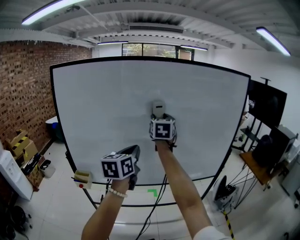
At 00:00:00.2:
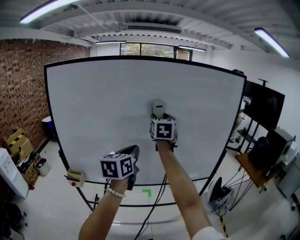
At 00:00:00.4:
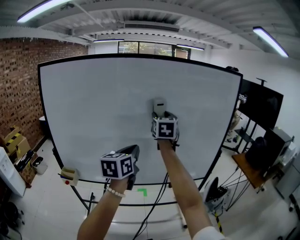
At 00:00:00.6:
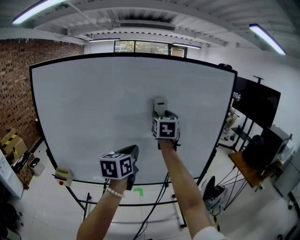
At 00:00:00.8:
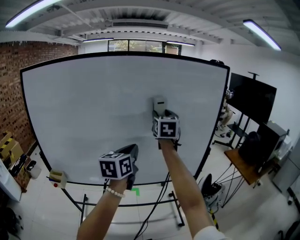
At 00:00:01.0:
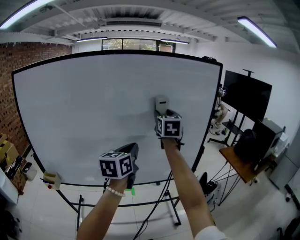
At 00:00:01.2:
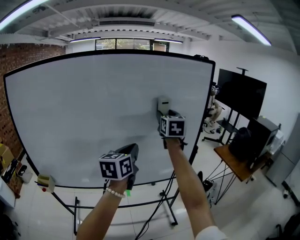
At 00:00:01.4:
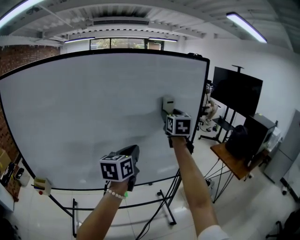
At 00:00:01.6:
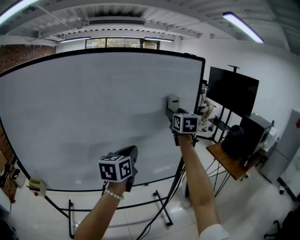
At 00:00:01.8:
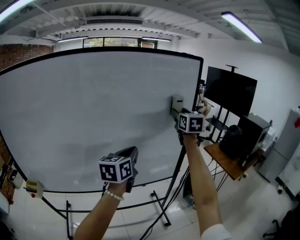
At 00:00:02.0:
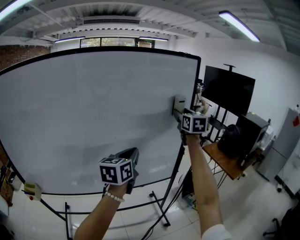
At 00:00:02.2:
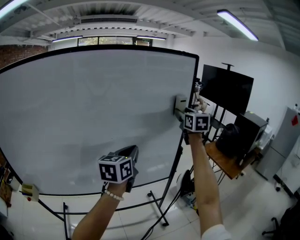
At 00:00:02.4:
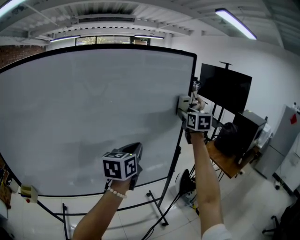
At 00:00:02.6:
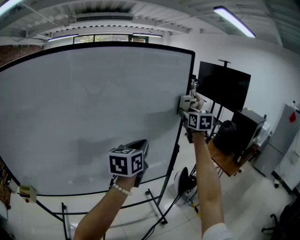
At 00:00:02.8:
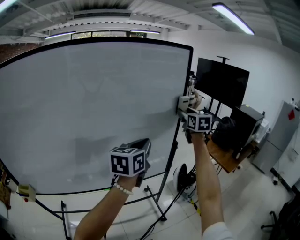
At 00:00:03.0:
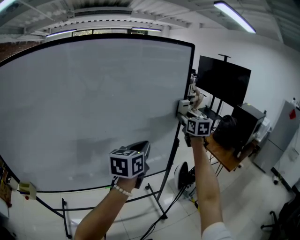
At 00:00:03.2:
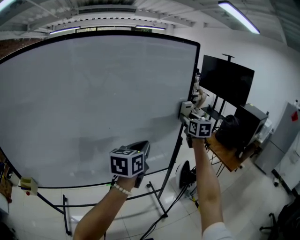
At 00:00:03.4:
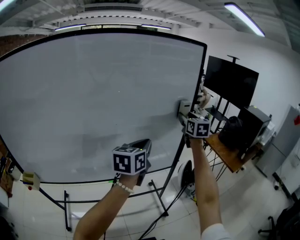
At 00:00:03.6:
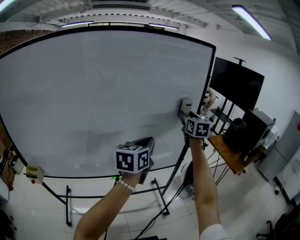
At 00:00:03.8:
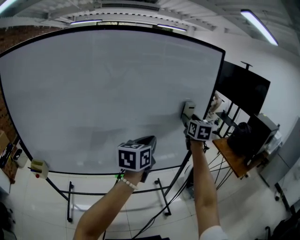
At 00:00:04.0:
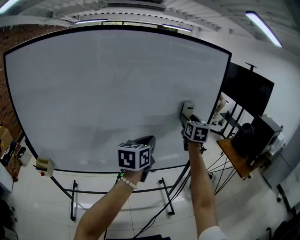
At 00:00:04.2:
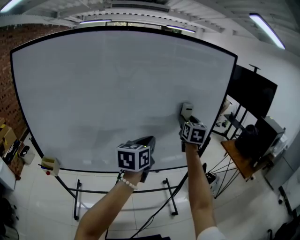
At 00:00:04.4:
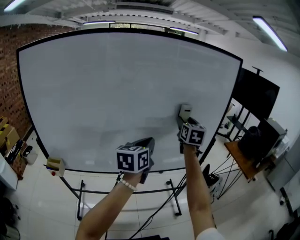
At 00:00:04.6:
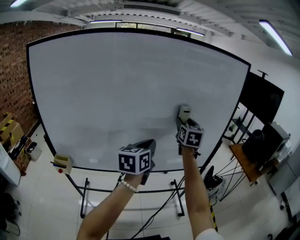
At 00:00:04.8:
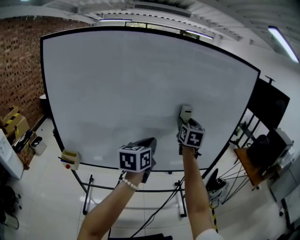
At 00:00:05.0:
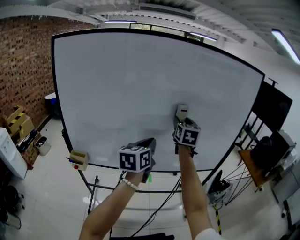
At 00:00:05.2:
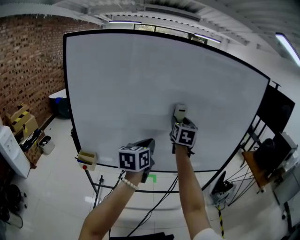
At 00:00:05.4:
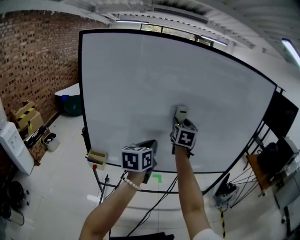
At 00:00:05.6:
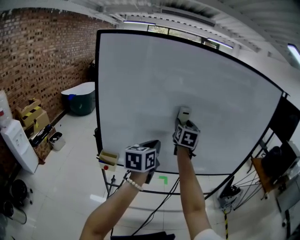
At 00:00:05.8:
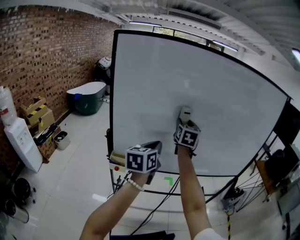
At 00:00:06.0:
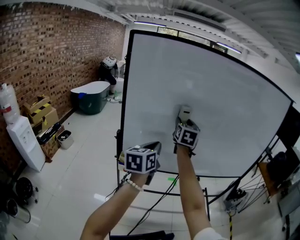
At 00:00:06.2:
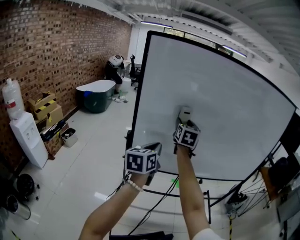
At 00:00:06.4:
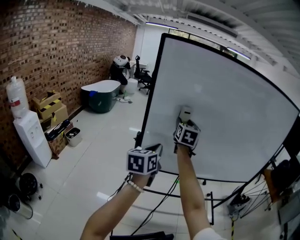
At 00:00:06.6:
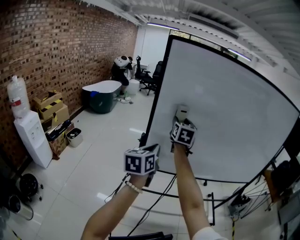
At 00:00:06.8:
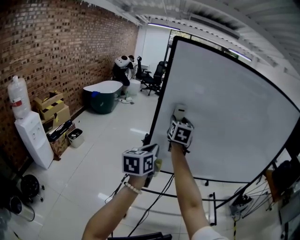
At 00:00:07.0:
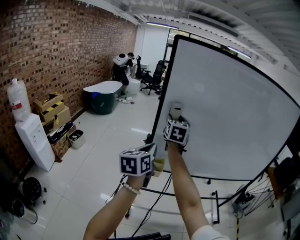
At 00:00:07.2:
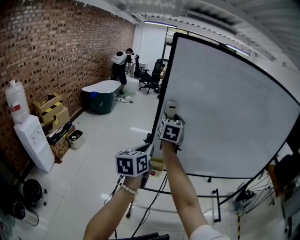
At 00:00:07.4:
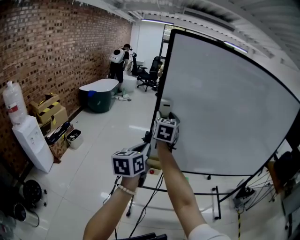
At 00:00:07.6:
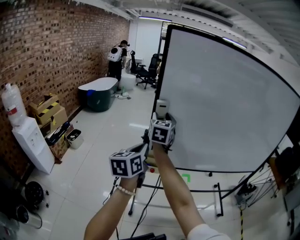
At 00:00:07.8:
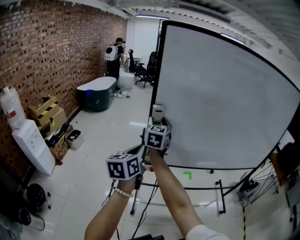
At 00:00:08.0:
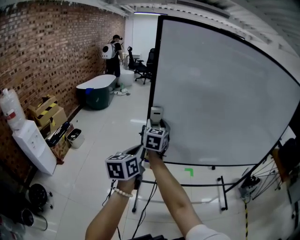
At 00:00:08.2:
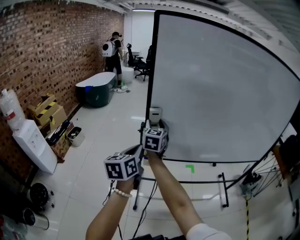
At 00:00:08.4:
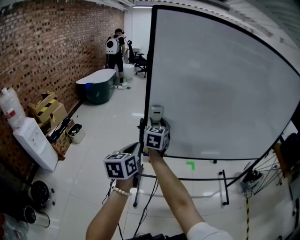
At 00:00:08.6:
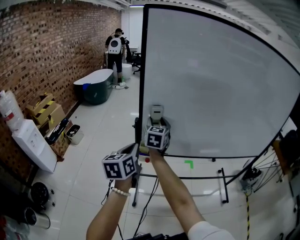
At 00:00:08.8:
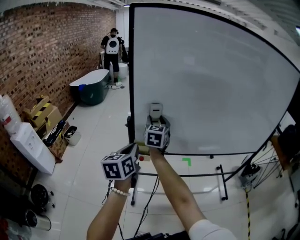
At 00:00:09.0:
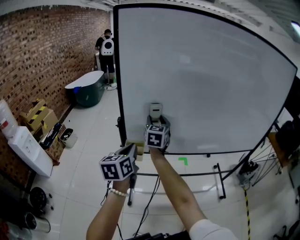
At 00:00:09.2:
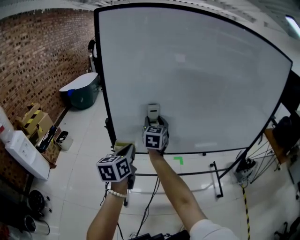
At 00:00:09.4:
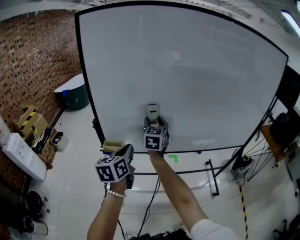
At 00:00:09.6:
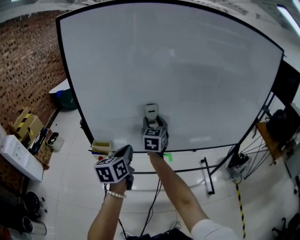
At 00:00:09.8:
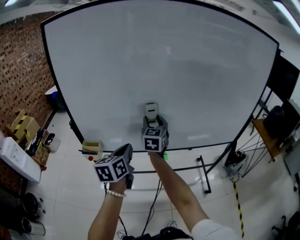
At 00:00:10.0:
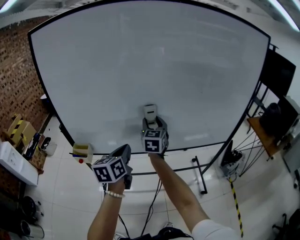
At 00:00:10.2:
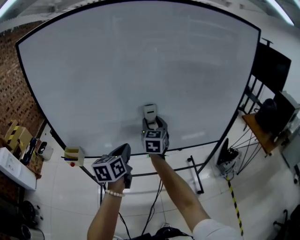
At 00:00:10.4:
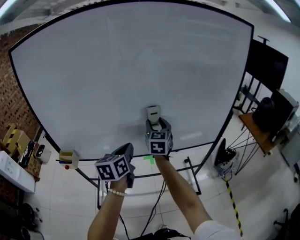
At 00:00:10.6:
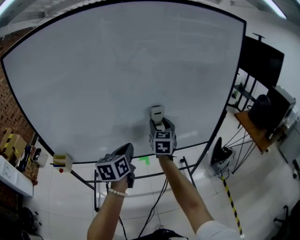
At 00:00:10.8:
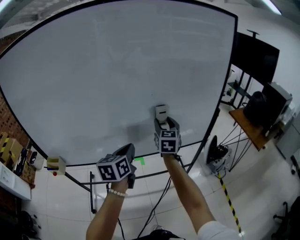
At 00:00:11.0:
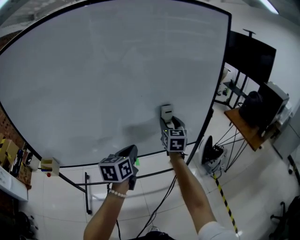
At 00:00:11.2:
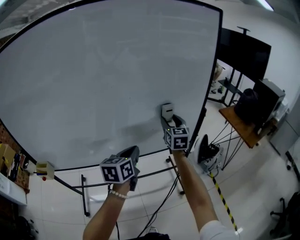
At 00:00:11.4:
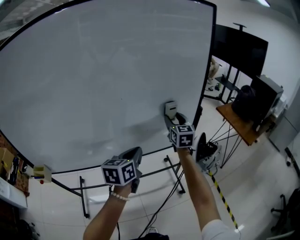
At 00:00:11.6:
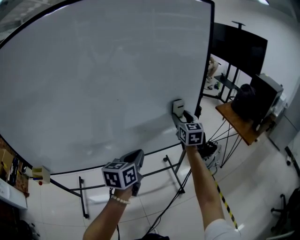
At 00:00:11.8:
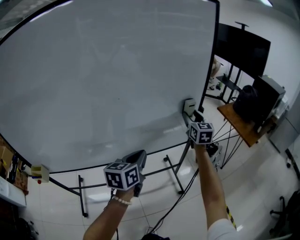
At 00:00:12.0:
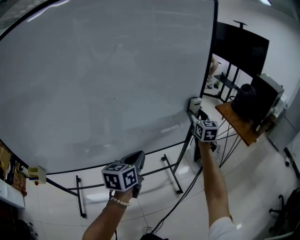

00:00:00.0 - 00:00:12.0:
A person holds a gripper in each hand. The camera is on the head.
00:00:00.0 - 00:00:01.6: The right gripper moves to the right, about 40 cm; the left gripper is displaced to the right and forward by about 35 cm.
00:00:01.6 - 00:00:03.0: The left gripper is displaced to the right and forward by about 10 cm. Meanwhile the right gripper goes about 15 cm to the right, downward and forward.
00:00:03.0 - 00:00:04.4: The two grippers go about 25 cm to the left and backward.
00:00:04.4 - 00:00:06.0: The pair of grippers is taken to the left, some 50 cm.
00:00:06.0 - 00:00:07.6: The grippers both shift to the left by some 25 cm.
00:00:07.6 - 00:00:09.0: The right gripper is displaced to the right and downward by some 20 cm. Meanwhile the left gripper moves to the right and downward, approximately 10 cm.
00:00:09.0 - 00:00:10.4: Both grippers are carried to the right, roughly 50 cm.
00:00:10.4 - 00:00:12.0: The right gripper heads to the right, covering about 40 cm. The left gripper moves to the right, some 25 cm, and turns by about 20 degrees.

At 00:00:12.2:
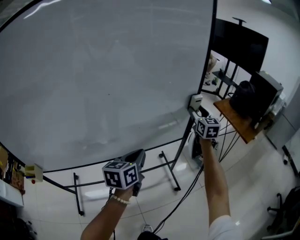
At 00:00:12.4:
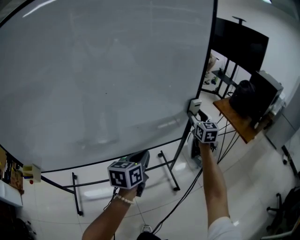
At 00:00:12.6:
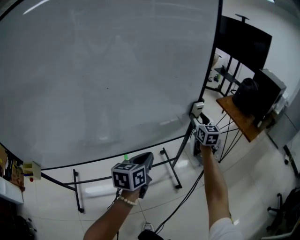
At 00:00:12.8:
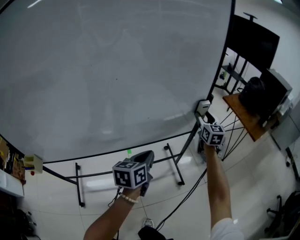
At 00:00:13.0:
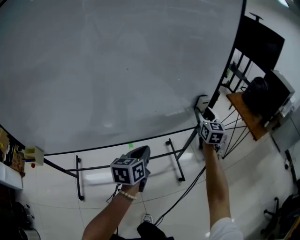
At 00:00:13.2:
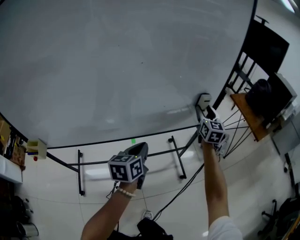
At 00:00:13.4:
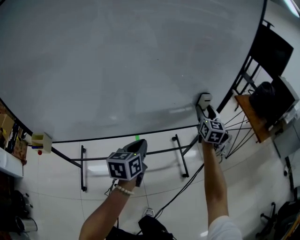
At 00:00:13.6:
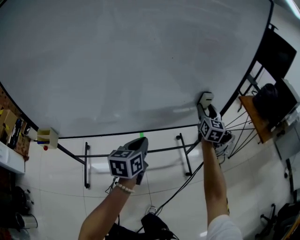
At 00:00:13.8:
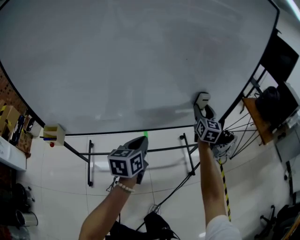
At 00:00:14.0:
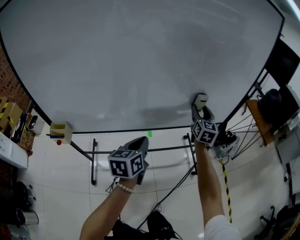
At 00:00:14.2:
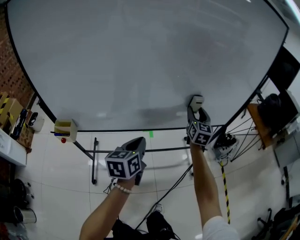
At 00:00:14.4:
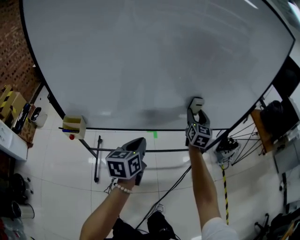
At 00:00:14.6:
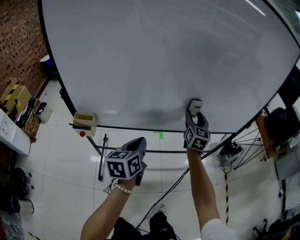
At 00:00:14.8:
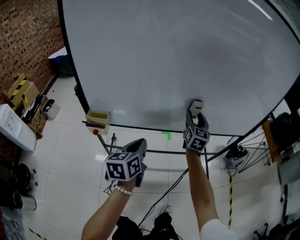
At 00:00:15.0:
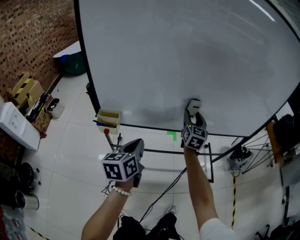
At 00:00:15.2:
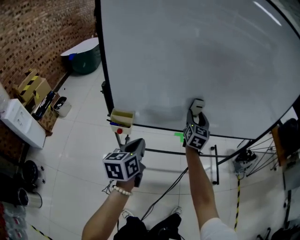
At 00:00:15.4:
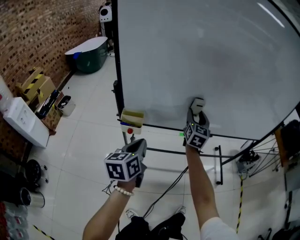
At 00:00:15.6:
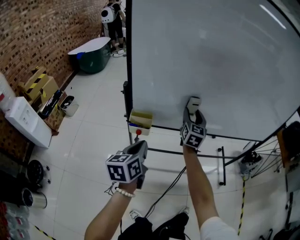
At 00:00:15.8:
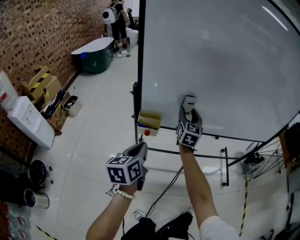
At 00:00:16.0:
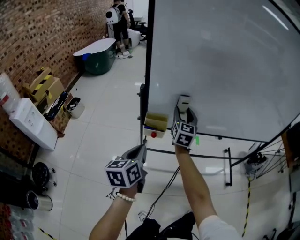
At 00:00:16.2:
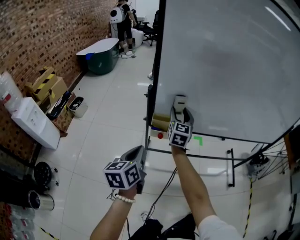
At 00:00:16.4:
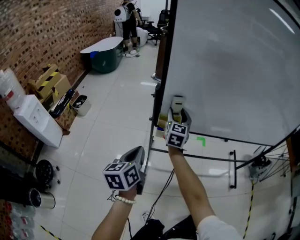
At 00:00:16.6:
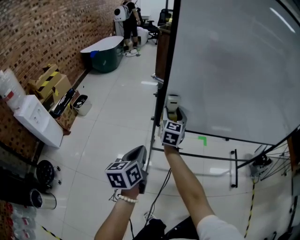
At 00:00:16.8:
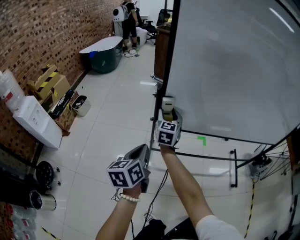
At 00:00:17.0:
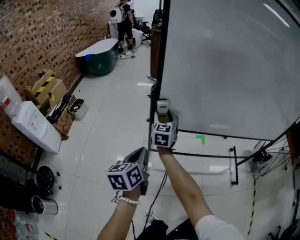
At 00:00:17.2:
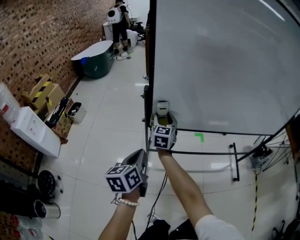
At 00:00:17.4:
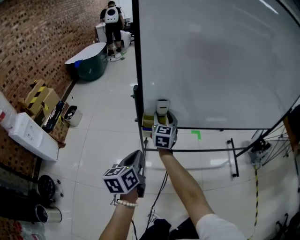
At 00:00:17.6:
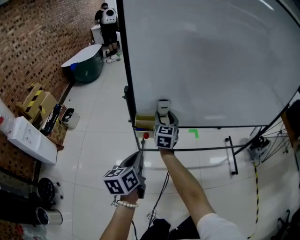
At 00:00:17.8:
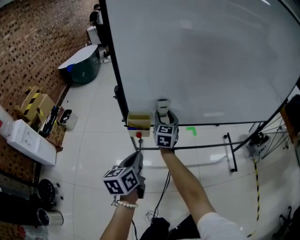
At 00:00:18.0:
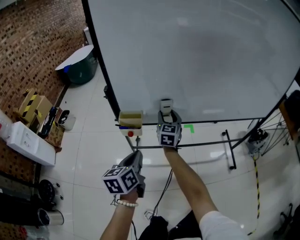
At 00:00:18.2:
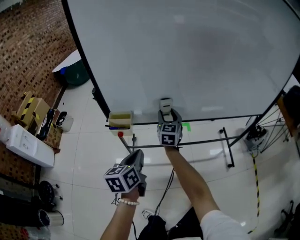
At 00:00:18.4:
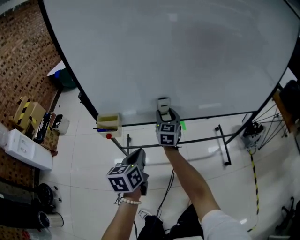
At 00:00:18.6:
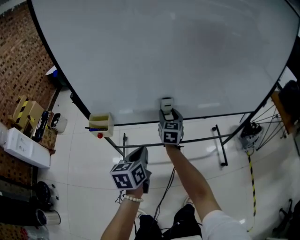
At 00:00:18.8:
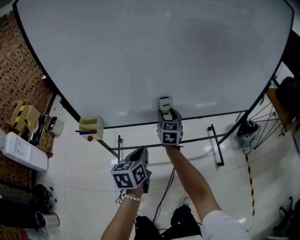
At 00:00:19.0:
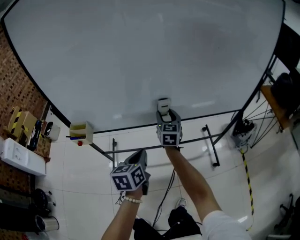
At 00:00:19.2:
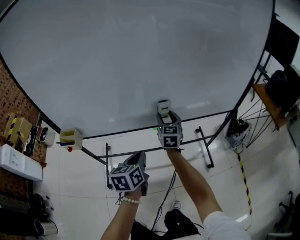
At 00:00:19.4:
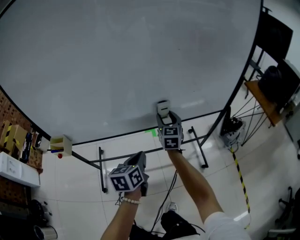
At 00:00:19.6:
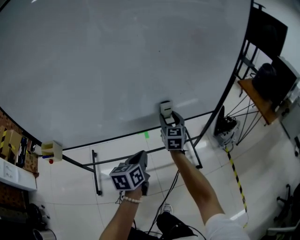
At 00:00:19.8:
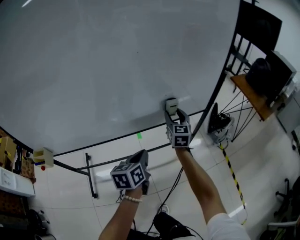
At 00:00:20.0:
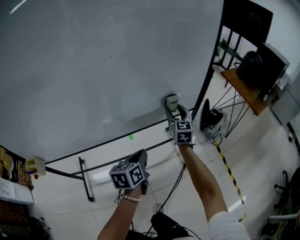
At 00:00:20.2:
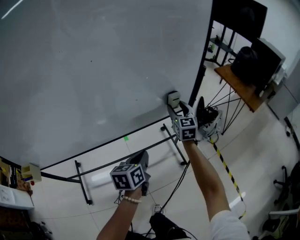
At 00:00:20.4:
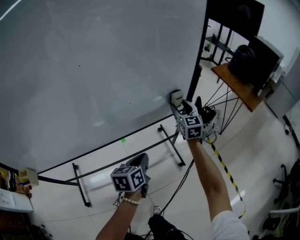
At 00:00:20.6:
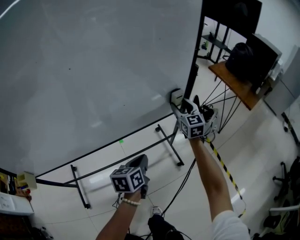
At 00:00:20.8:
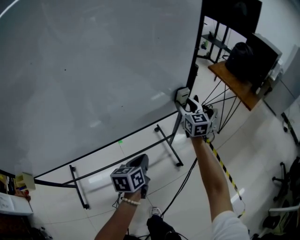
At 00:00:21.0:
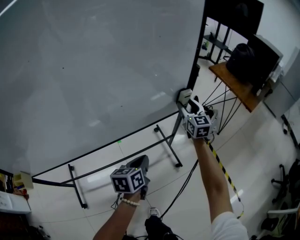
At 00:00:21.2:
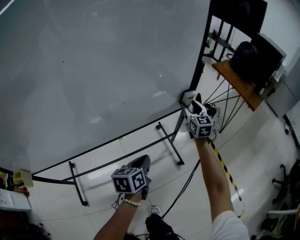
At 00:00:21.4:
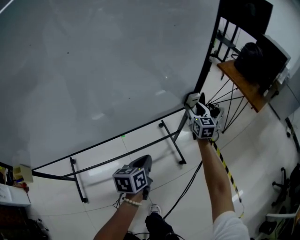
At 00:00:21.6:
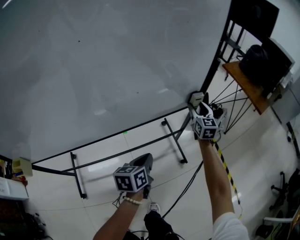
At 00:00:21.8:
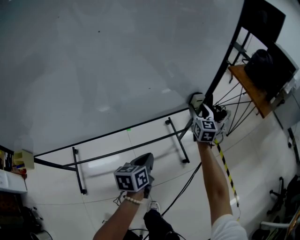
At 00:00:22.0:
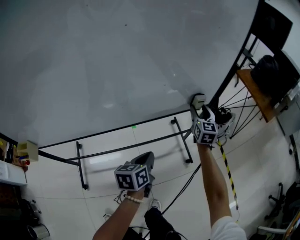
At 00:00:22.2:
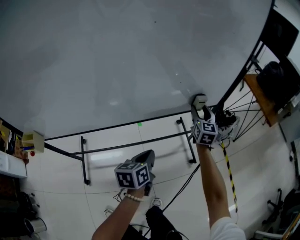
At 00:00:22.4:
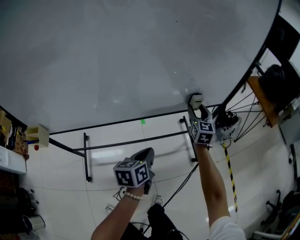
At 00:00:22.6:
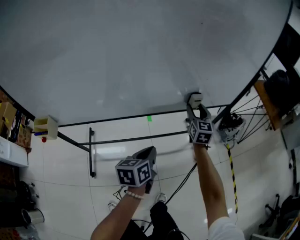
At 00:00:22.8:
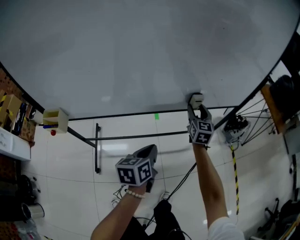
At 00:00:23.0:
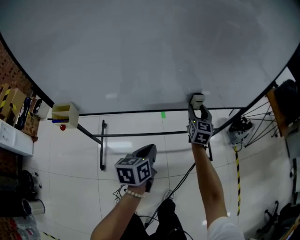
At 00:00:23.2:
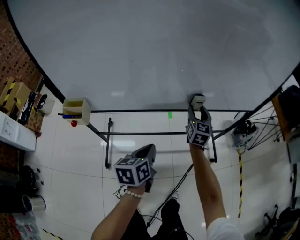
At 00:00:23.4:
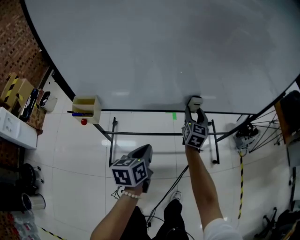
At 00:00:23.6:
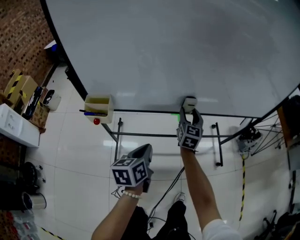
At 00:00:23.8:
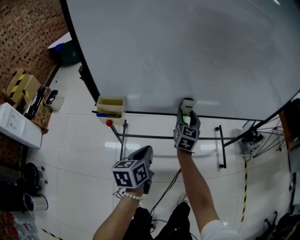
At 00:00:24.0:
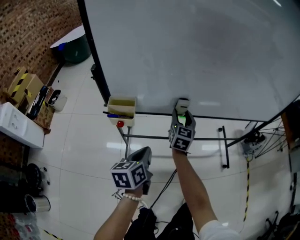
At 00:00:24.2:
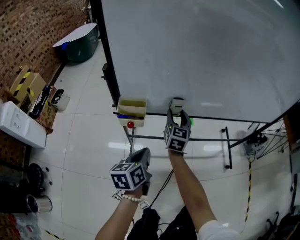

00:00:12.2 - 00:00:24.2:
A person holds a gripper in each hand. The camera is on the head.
00:00:12.2 - 00:00:13.8: Both grippers move to the left and backward, some 25 cm.
00:00:13.8 - 00:00:15.2: The pair of grippers is taken to the left, roughly 40 cm.
00:00:15.2 - 00:00:16.6: The right gripper heads to the left, covering roughly 40 cm; the left gripper heads to the left, covering some 25 cm.
00:00:16.6 - 00:00:18.2: The grippers both shift to the right by some 25 cm.
00:00:18.2 - 00:00:19.8: Both grippers are carried to the right, roughly 60 cm.
00:00:19.8 - 00:00:21.2: The left gripper shifts approximately 20 cm to the right, forward and downward. Meanwhile the right gripper travels to the right and forward by approximately 25 cm.
00:00:21.2 - 00:00:22.6: The two grippers go about 30 cm to the left and backward.
00:00:22.6 - 00:00:24.2: Both grippers are carried to the left, approximately 50 cm.
